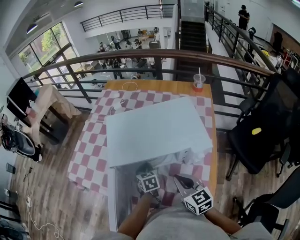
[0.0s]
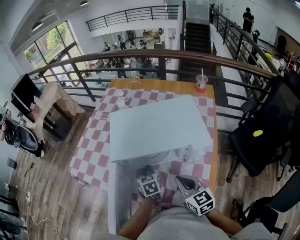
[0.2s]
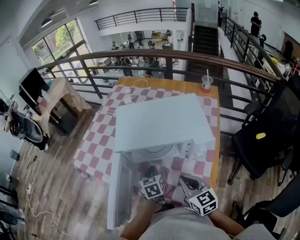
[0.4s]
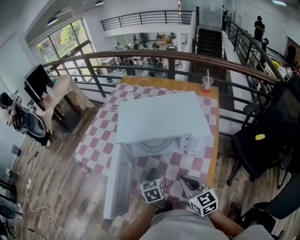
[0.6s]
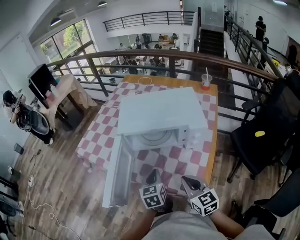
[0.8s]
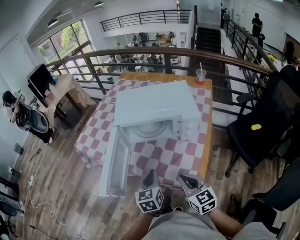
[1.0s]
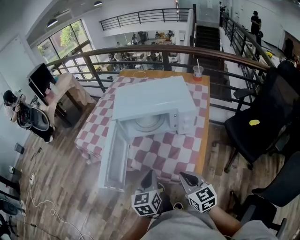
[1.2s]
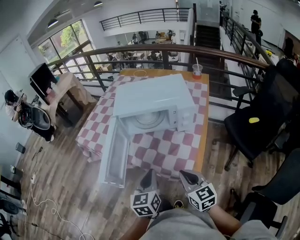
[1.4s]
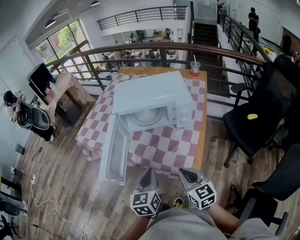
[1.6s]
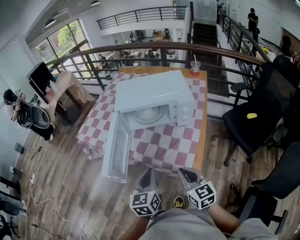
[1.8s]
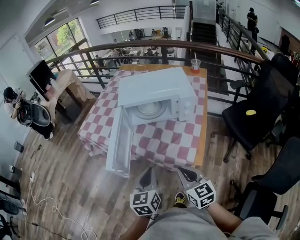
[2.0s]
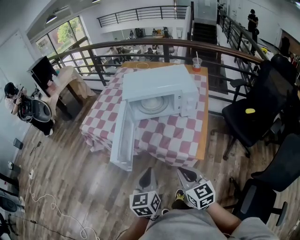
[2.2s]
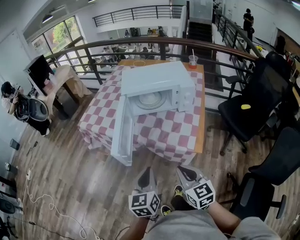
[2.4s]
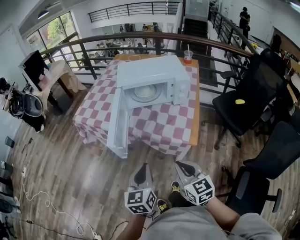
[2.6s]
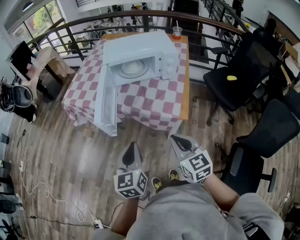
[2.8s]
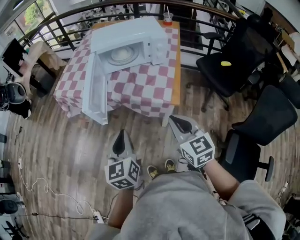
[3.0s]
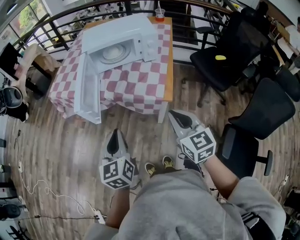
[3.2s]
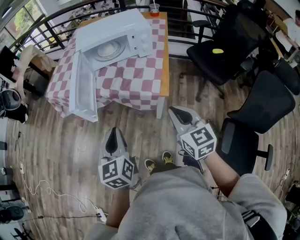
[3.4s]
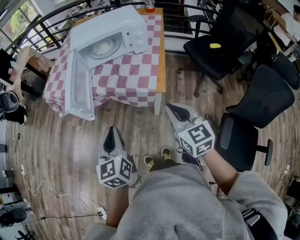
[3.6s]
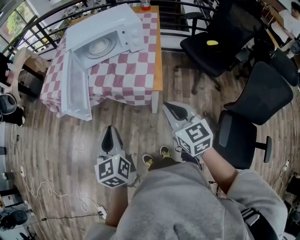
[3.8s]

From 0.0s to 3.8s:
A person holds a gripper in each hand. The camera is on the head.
From 0.0s to 1.2s: The grippers both shift backward by about 30 cm. The left gripper swivels some 30 degrees.
From 1.2s to 2.6s: Both grippers travel together backward and to the left, approximately 20 cm.
From 2.6s to 3.8s: The right gripper heads to the right, covering roughly 15 cm; the left gripper moves approximately 5 cm.

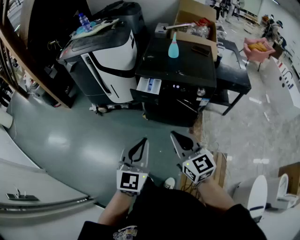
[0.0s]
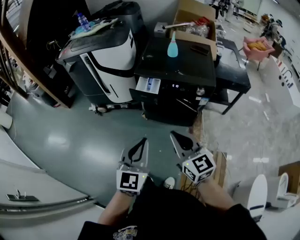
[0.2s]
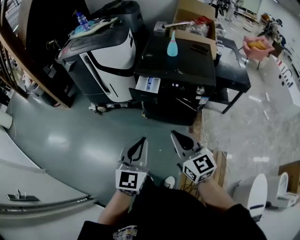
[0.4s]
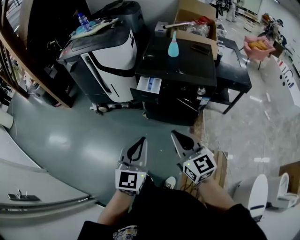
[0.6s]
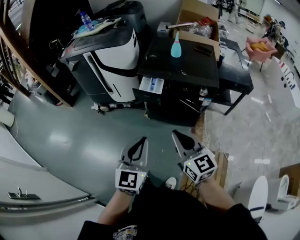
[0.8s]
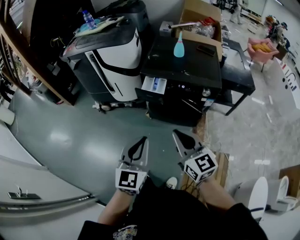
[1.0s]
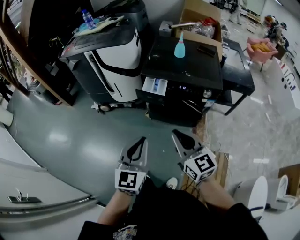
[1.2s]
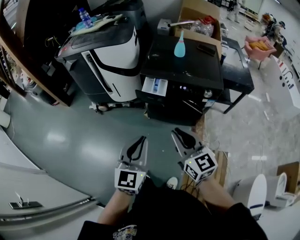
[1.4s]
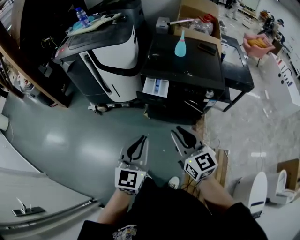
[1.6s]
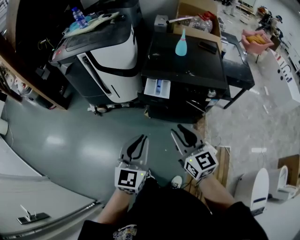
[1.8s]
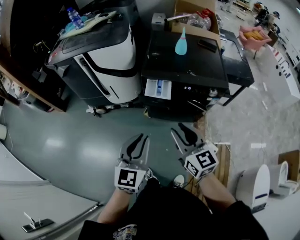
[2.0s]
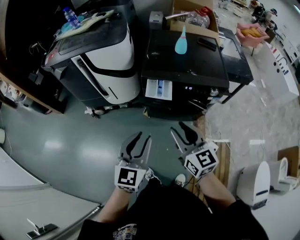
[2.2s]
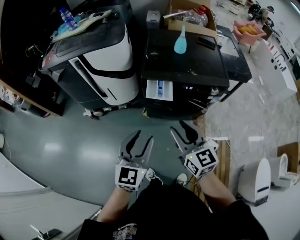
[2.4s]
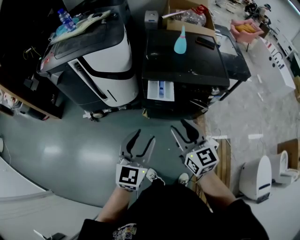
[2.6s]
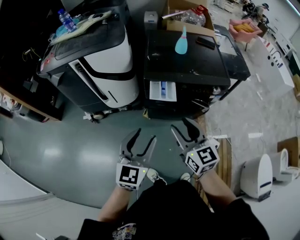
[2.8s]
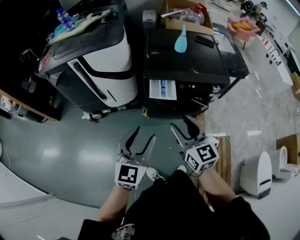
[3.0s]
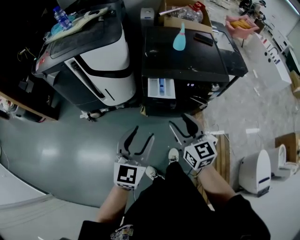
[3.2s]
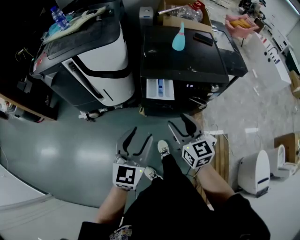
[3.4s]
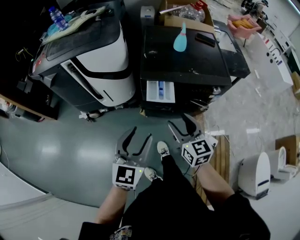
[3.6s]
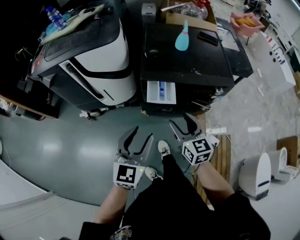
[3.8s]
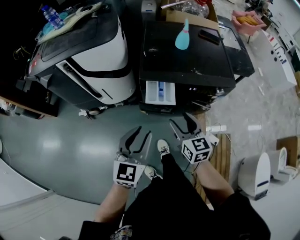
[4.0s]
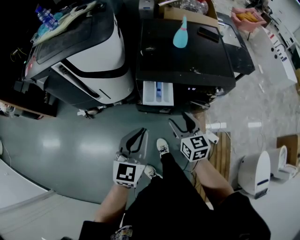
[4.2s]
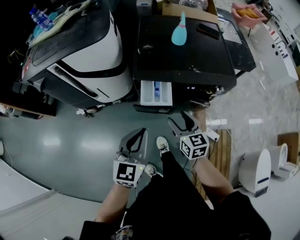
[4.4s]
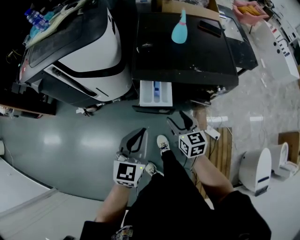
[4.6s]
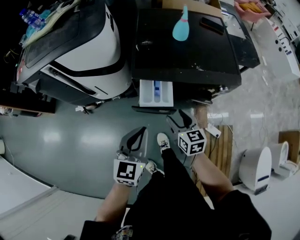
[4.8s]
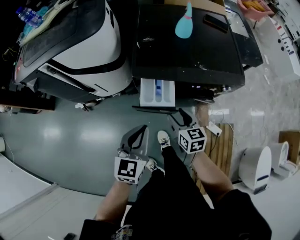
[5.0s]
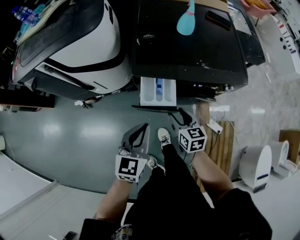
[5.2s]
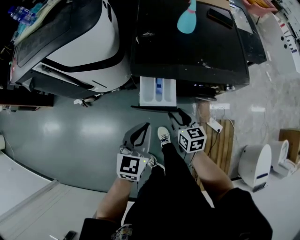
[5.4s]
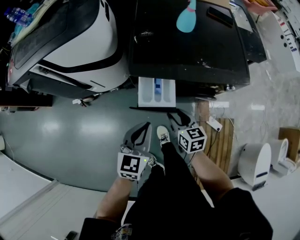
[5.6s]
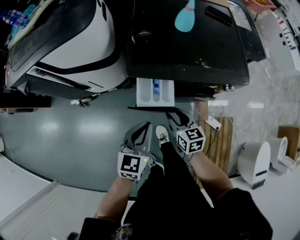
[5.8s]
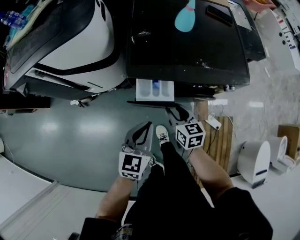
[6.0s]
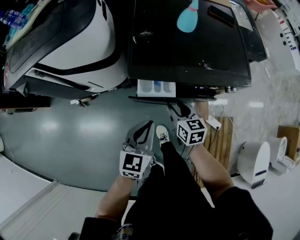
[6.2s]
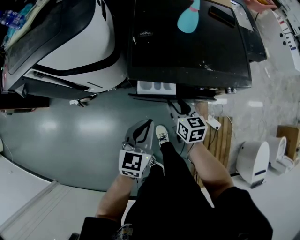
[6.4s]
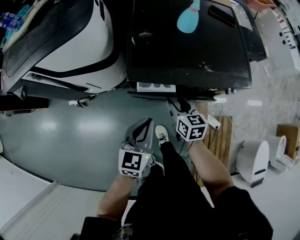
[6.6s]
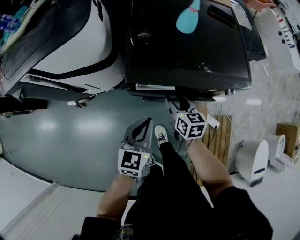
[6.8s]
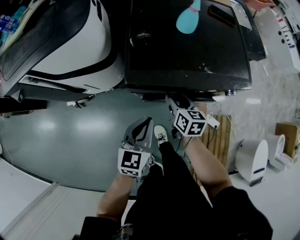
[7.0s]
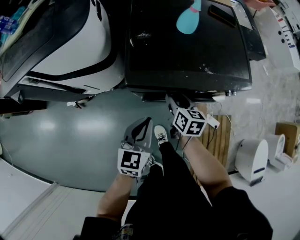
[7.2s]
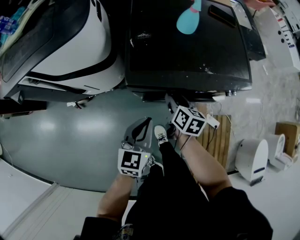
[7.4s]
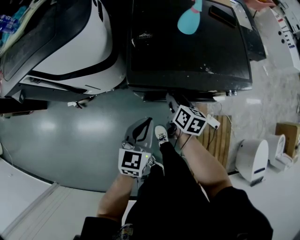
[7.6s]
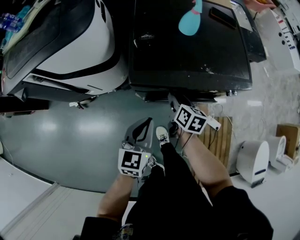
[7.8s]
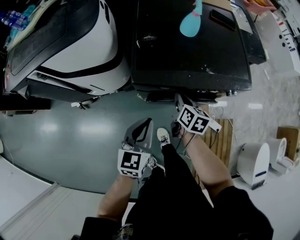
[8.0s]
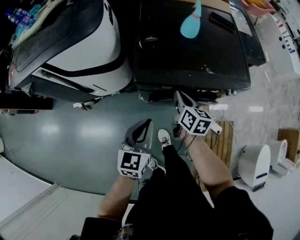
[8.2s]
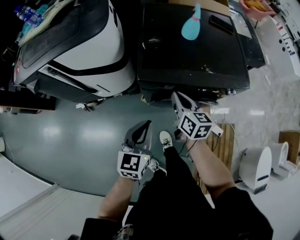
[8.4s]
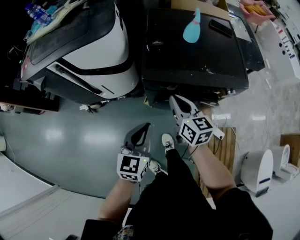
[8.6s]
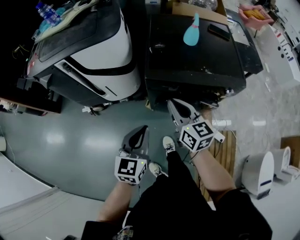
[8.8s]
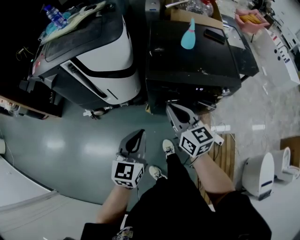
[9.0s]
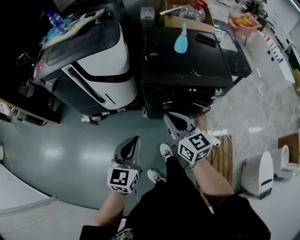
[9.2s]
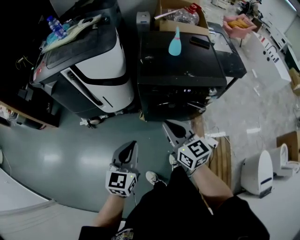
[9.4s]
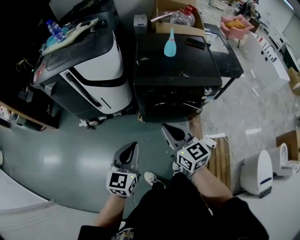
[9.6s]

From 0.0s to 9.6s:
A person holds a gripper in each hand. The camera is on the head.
From 0.0s to 1.6s: Both grippers travel together forward and to the left, about 10 cm. The right gripper opens up.
From 1.6s to 3.2s: Both grippers move forward and to the left, approximately 15 cm. The left gripper opens its fingers, while the right gripper opens up.
From 3.2s to 4.8s: The right gripper heads downward and forward, covering approximately 25 cm, and changes its angle by some 20 degrees, while the left gripper goes roughly 15 cm forward and downward, and closes up.
From 4.8s to 6.4s: The grippers both shift forward and downward by some 10 cm.
From 6.4s to 8.0s: The right gripper swivels approximately 20 degrees, and closes its fingers.
From 8.0s to 9.6s: The two grippers go approximately 35 cm backward and upward. The right gripper rotates roughly 50 degrees.

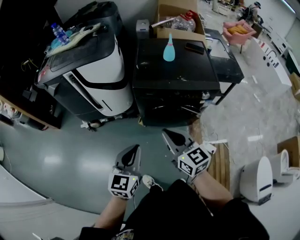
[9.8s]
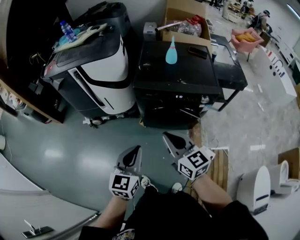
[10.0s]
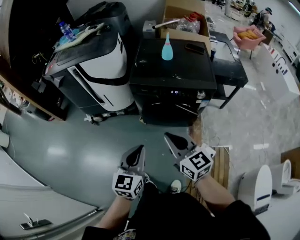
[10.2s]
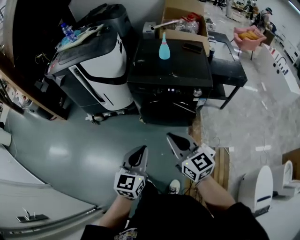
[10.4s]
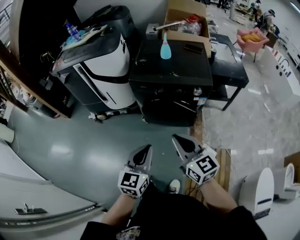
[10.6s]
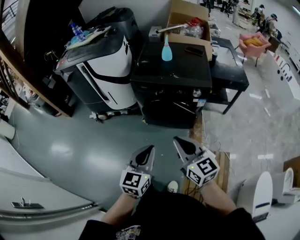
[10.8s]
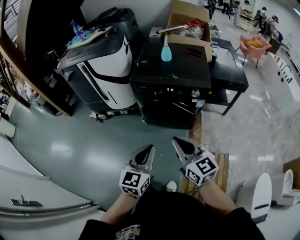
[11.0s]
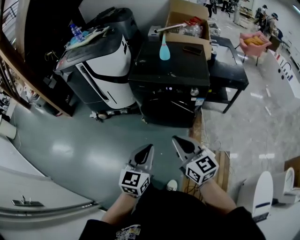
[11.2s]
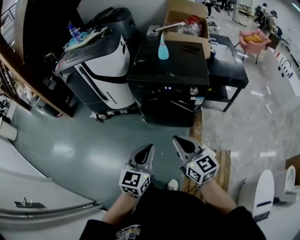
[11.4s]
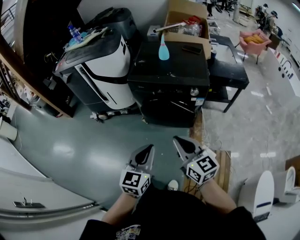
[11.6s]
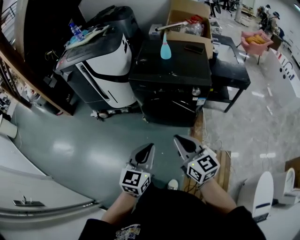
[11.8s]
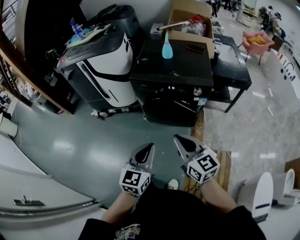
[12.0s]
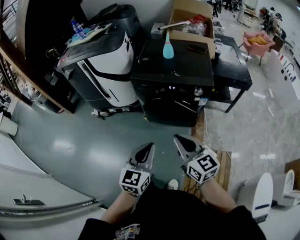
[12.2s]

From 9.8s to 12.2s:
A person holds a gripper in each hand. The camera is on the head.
From 9.8s to 11.0s: The right gripper heads backward and to the right, covering roughly 25 cm. Meanwhile the left gripper heads to the right and backward, covering some 25 cm.
From 11.0s to 12.2s: The grippers stay close to where they were, moving slightly.

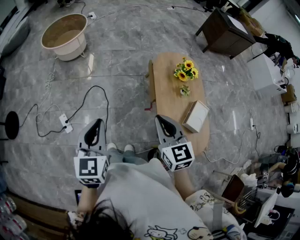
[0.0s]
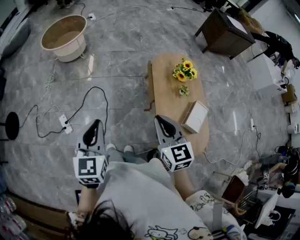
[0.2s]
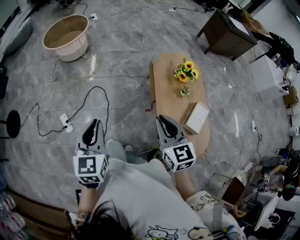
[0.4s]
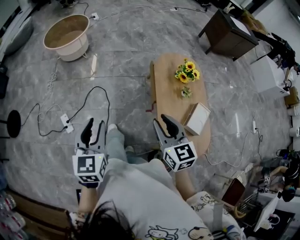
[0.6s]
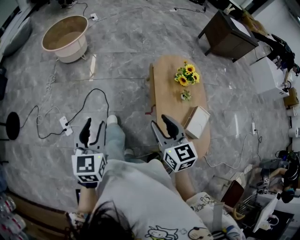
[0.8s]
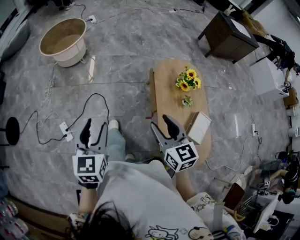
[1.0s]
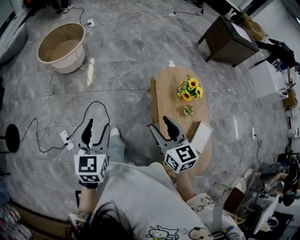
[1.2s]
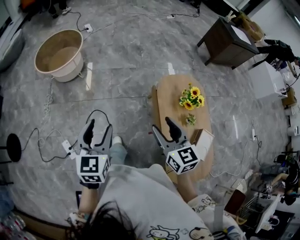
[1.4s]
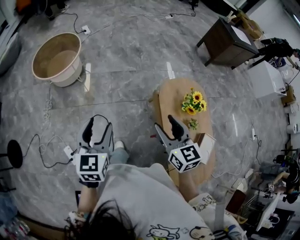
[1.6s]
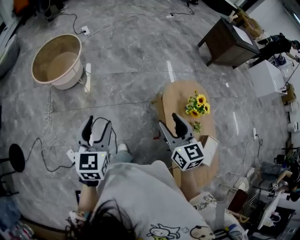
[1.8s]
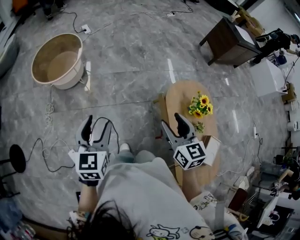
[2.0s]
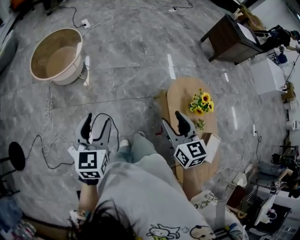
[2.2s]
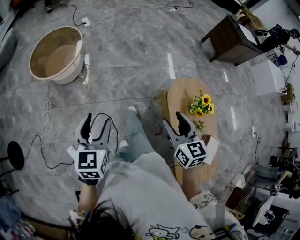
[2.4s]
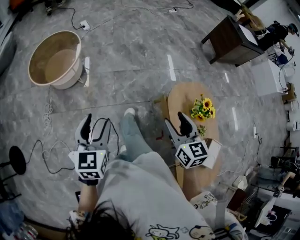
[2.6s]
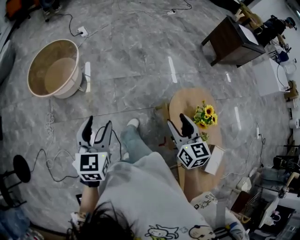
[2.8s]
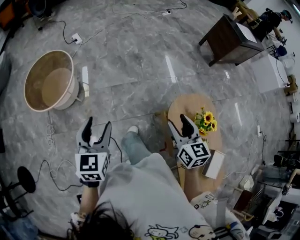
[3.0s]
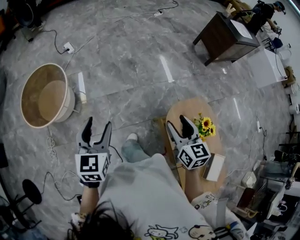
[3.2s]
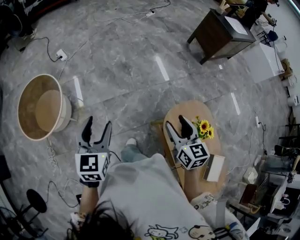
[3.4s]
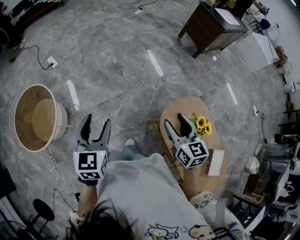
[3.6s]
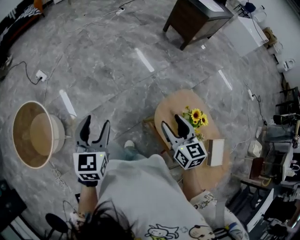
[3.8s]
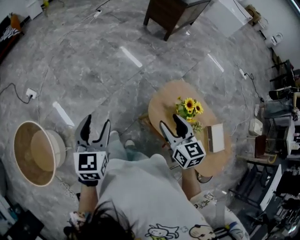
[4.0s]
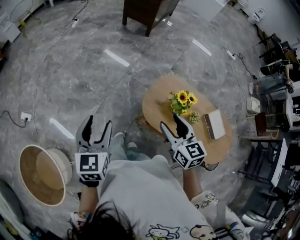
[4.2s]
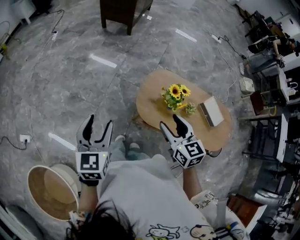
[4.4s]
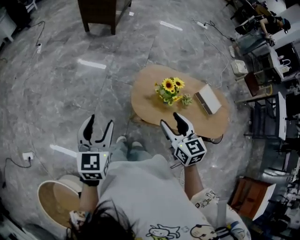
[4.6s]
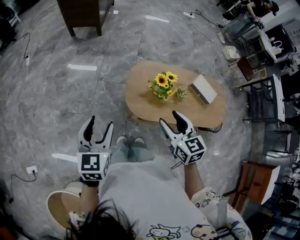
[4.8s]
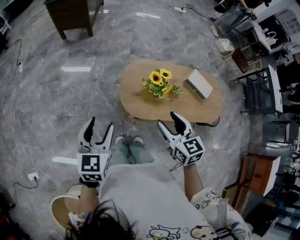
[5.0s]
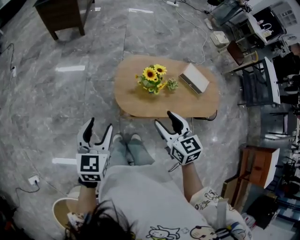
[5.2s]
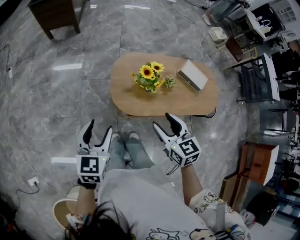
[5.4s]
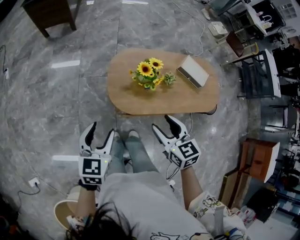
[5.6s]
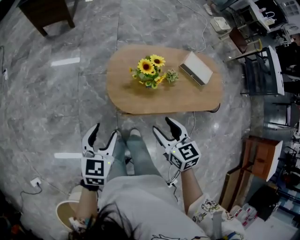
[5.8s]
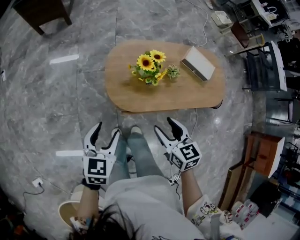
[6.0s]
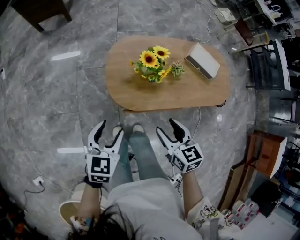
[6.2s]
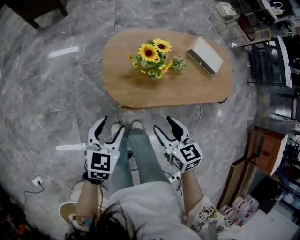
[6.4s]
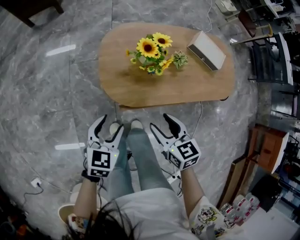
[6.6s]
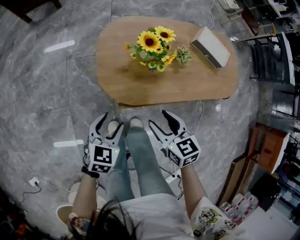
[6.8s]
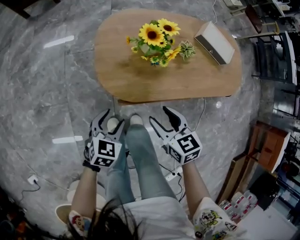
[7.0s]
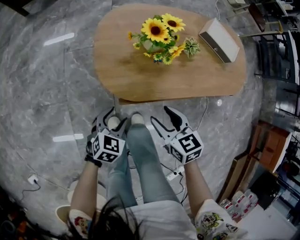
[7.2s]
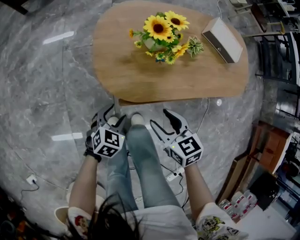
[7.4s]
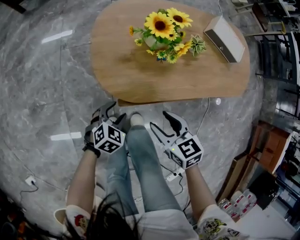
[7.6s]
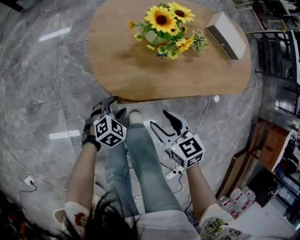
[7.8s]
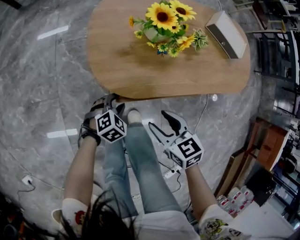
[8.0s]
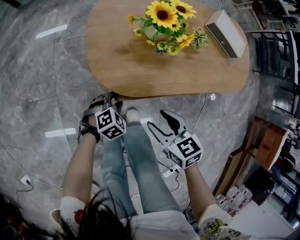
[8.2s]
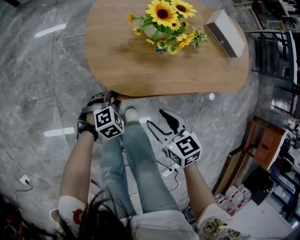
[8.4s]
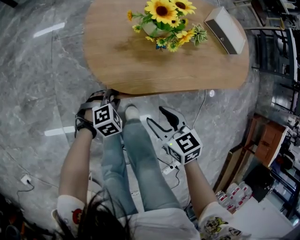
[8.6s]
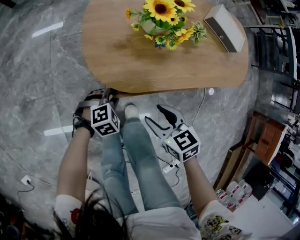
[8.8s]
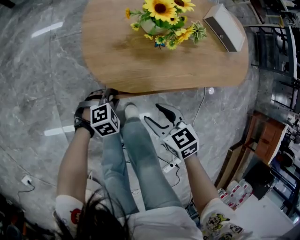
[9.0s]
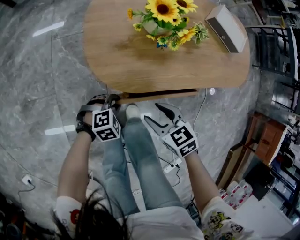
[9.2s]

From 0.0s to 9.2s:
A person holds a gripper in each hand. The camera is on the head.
From 0.0s to 1.6s: Both grippers travel together forward, roughly 30 cm. The left gripper opens up. The right gripper opens up.
From 1.6s to 3.0s: Both grippers travel together forward, some 25 cm.
From 3.0s to 4.6s: The left gripper ends up some 40 cm from where it was, and changes its angle by roughly 70 degrees, while the right gripper changes place by some 15 cm, and rotates approximately 60 degrees.
From 4.6s to 6.2s: The two grippers go some 20 cm downward and to the right. The left gripper rotates roughly 30 degrees; the right gripper turns by about 20 degrees.
From 6.2s to 7.6s: The left gripper shifts approximately 35 cm downward, and changes its angle by about 30 degrees, while the right gripper is displaced downward by roughly 20 cm.
From 7.6s to 9.2s: The left gripper changes place by about 5 cm, rotates about 30 degrees, and closes its fingers. The right gripper is displaced downward by approximately 5 cm.
